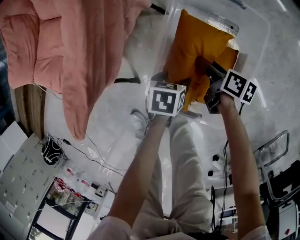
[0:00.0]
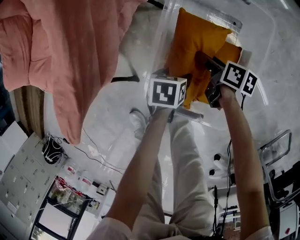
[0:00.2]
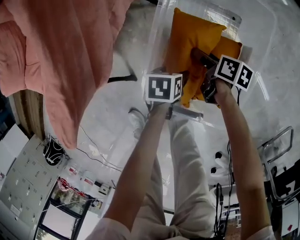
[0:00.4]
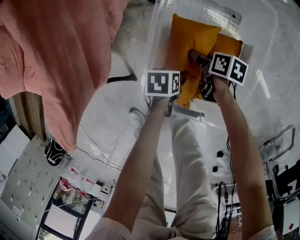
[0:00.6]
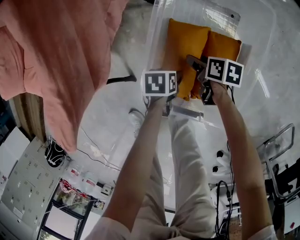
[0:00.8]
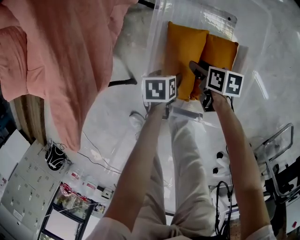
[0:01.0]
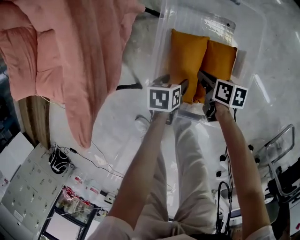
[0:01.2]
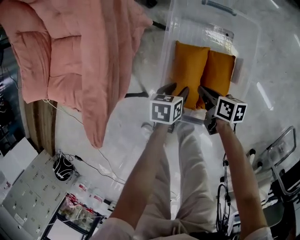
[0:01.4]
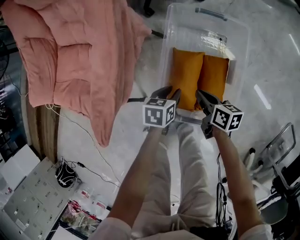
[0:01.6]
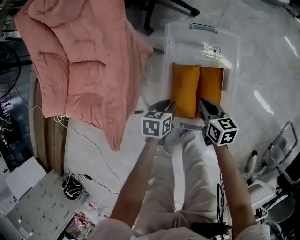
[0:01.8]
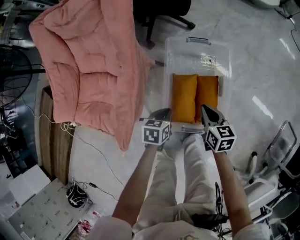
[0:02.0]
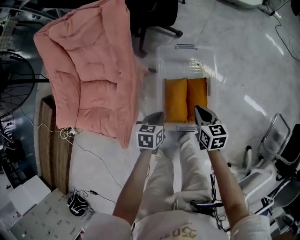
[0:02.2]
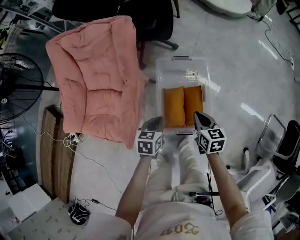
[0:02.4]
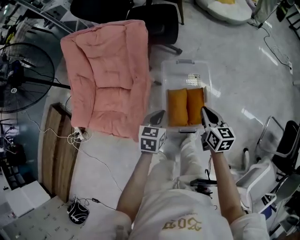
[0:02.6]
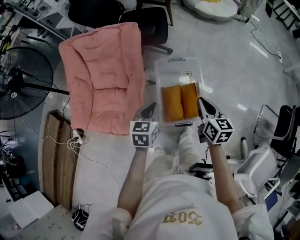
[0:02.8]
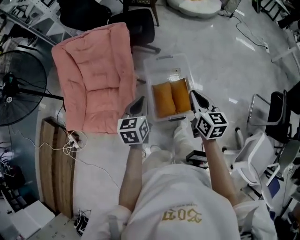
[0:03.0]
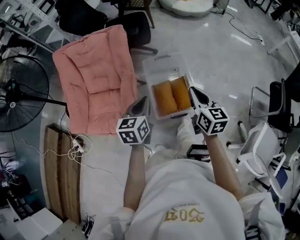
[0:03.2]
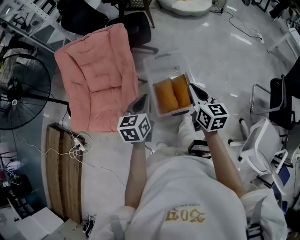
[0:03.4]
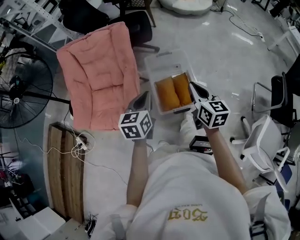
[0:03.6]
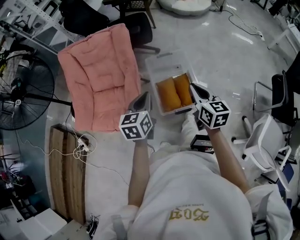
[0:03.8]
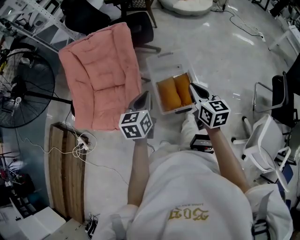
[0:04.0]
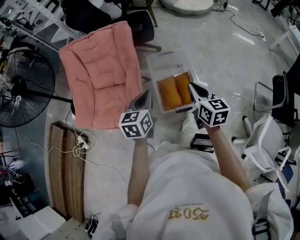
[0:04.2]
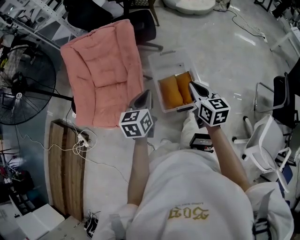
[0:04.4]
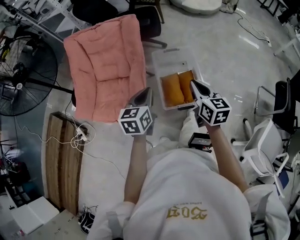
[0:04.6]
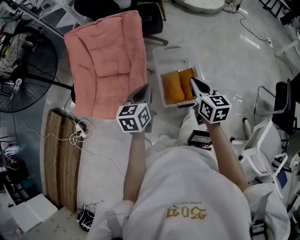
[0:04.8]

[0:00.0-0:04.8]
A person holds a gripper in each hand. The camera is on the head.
0.0 to 1.6 s: The grippers both shift upward by some 5 cm. The left gripper closes. The right gripper closes its fingers.
1.6 to 3.2 s: Both grippers move upward, approximately 50 cm. The left gripper turns by about 40 degrees; the right gripper swivels about 50 degrees.
3.2 to 4.8 s: The right gripper is displaced to the left by approximately 5 cm; the left gripper shifts by approximately 5 cm.

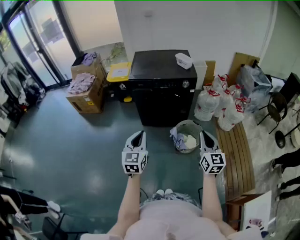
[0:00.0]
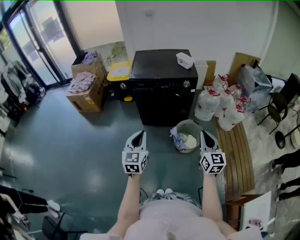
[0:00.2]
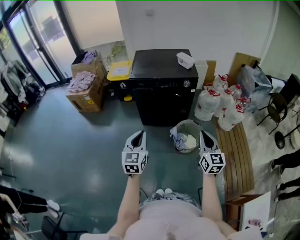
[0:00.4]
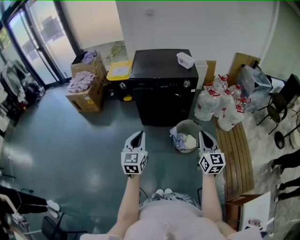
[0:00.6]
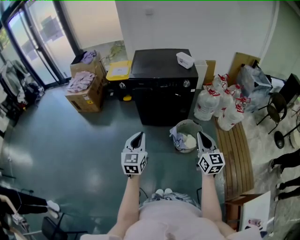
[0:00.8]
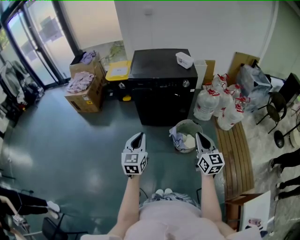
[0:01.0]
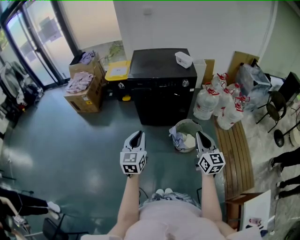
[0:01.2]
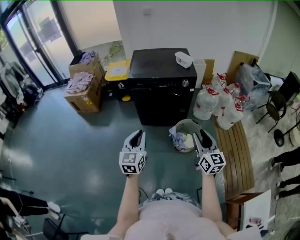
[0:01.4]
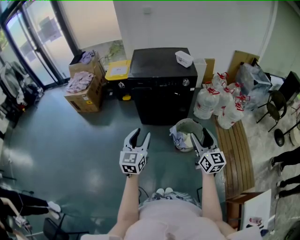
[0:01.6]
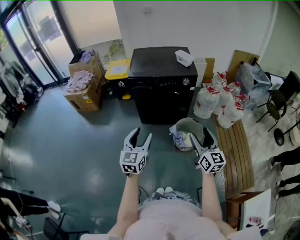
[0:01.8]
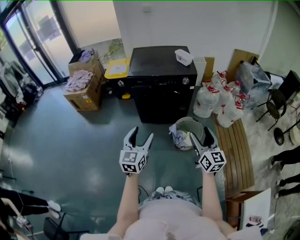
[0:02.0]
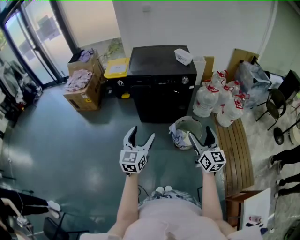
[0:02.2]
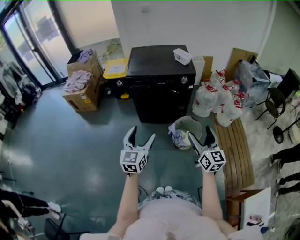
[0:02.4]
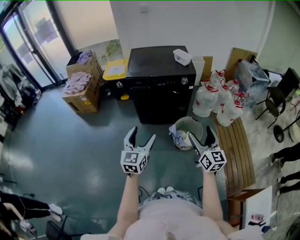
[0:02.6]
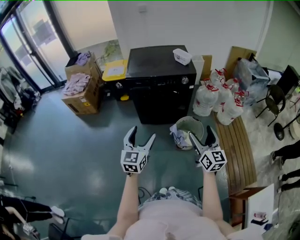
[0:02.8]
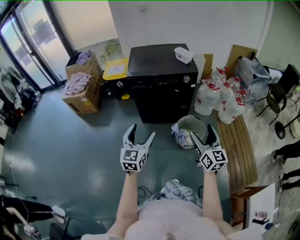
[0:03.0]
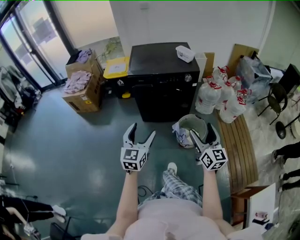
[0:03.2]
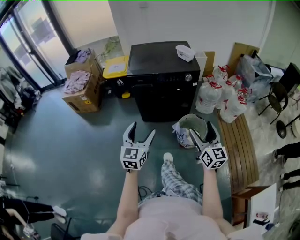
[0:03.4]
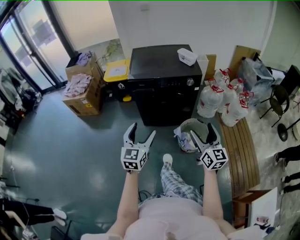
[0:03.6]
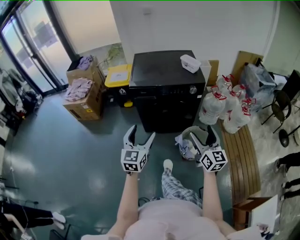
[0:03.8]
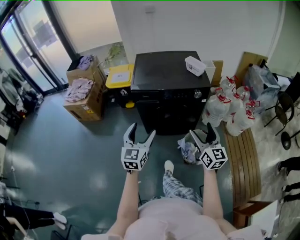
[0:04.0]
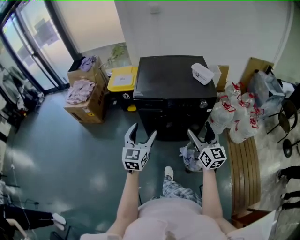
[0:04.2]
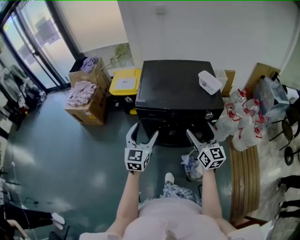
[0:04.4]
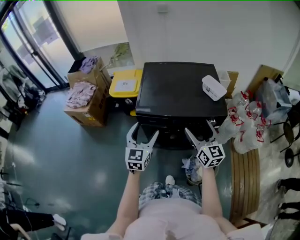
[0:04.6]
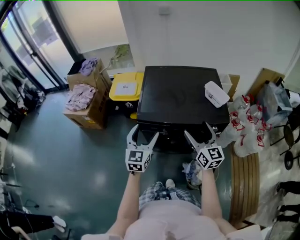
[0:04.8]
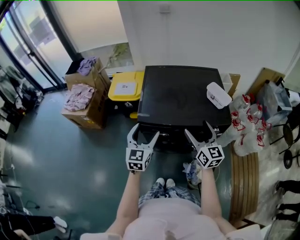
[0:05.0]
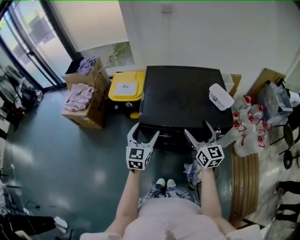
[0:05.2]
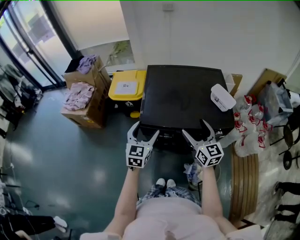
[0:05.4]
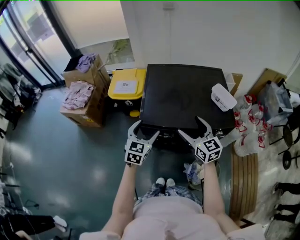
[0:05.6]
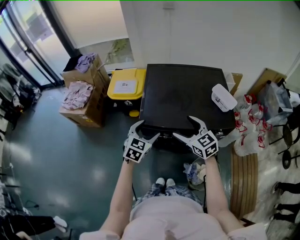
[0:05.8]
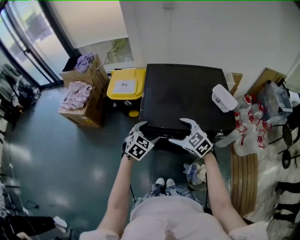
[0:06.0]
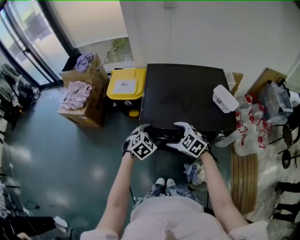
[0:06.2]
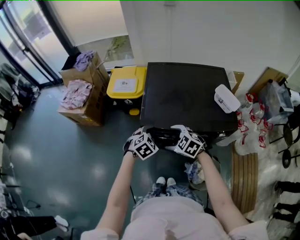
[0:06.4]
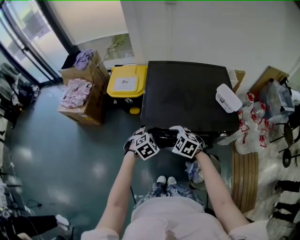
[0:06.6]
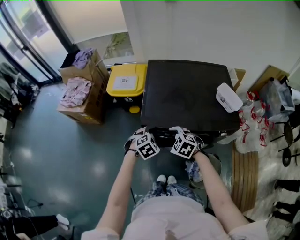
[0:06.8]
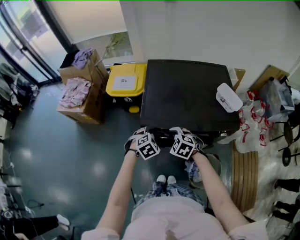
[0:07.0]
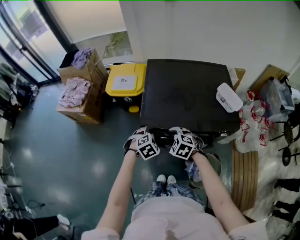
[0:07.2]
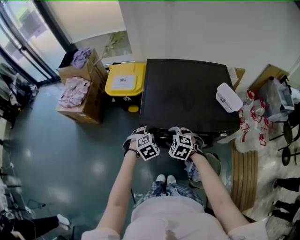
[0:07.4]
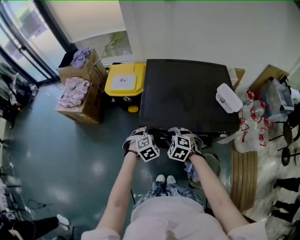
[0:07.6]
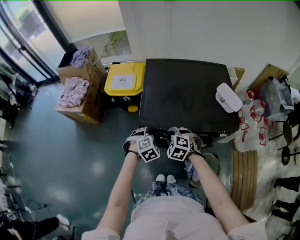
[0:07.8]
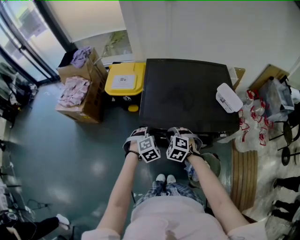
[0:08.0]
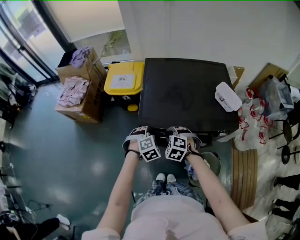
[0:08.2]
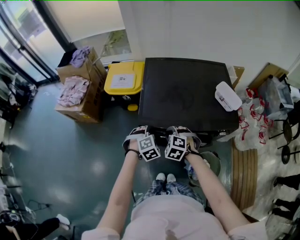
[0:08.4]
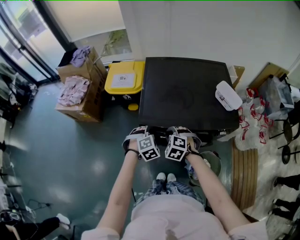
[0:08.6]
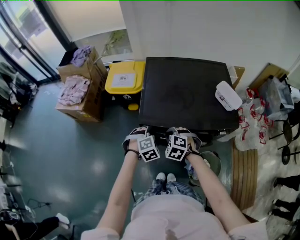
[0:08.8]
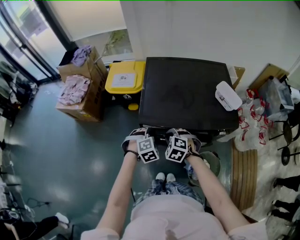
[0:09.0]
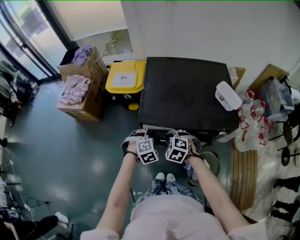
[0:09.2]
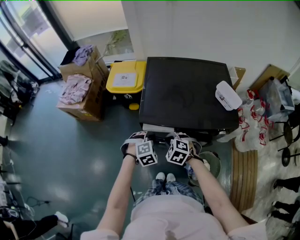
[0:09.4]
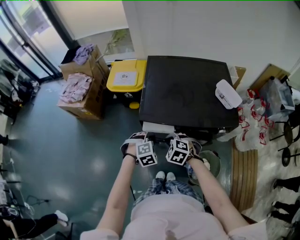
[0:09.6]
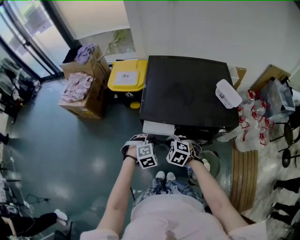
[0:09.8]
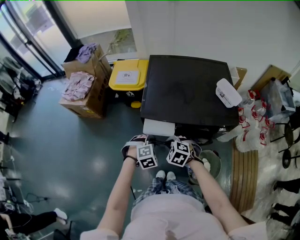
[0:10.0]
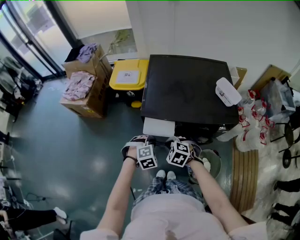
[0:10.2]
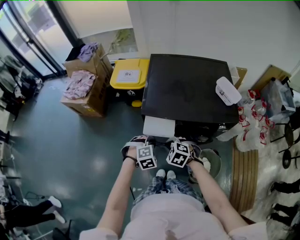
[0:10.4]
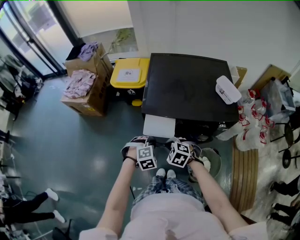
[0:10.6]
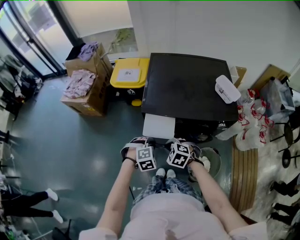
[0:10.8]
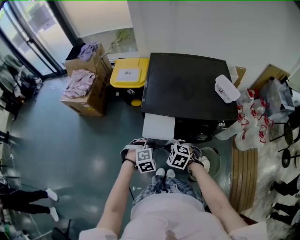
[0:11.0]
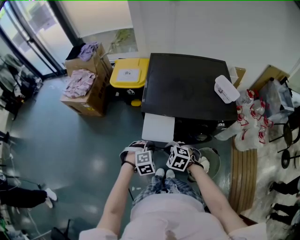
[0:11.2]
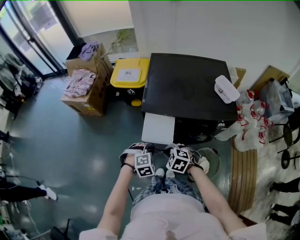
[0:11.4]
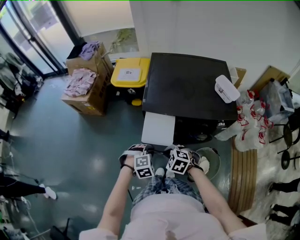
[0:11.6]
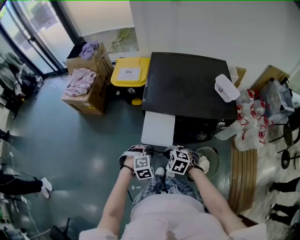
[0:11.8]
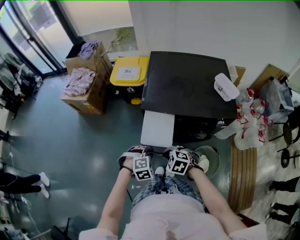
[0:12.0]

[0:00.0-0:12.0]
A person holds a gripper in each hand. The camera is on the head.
0.0 to 1.6 s: The right gripper opens its fingers. The left gripper opens.
1.6 to 3.0 s: The right gripper opens its fingers, while the left gripper opens up.
3.0 to 4.4 s: Both grippers travel together forward, approximately 35 cm.
4.4 to 6.0 s: The left gripper shifts some 20 cm forward and downward, and tips its fingers downward by roughly 30 degrees. Meanwhile the right gripper heads forward, to the left and downward, covering some 25 cm, and tilts its fingers about 30 degrees downward.
6.0 to 7.6 s: Both grippers move downward, approximately 10 cm. The right gripper rotates roughly 30 degrees, and closes. The left gripper turns by roughly 30 degrees, and closes up.
7.6 to 9.0 s: The left gripper closes up.
9.0 to 10.4 s: The grippers both shift backward by some 10 cm.
10.4 to 12.0 s: The two grippers go roughly 10 cm backward.

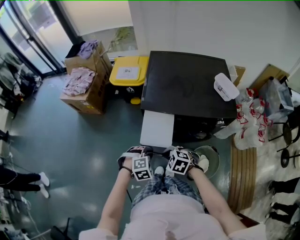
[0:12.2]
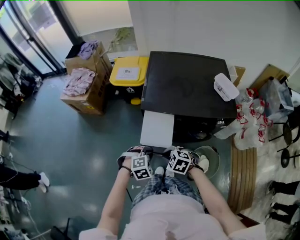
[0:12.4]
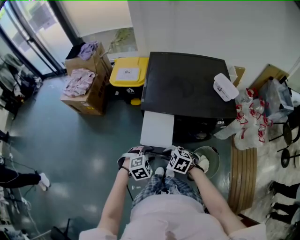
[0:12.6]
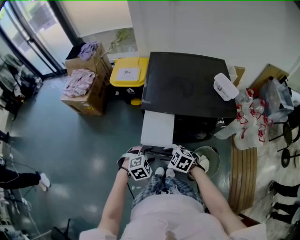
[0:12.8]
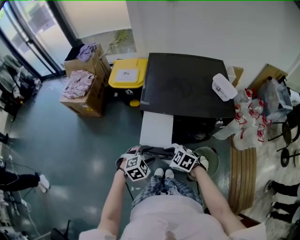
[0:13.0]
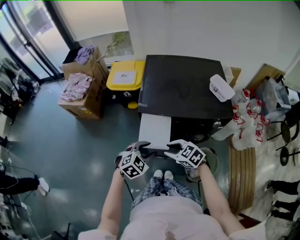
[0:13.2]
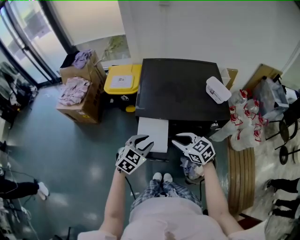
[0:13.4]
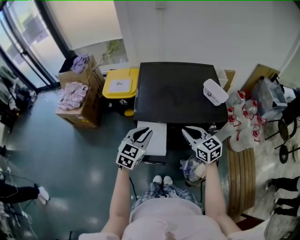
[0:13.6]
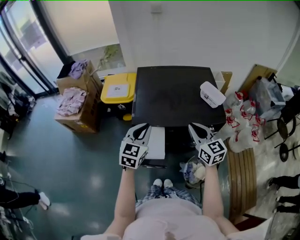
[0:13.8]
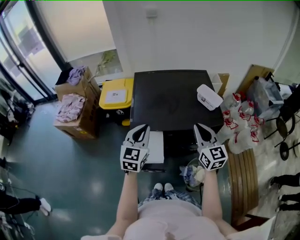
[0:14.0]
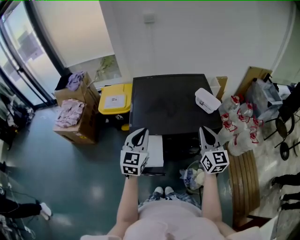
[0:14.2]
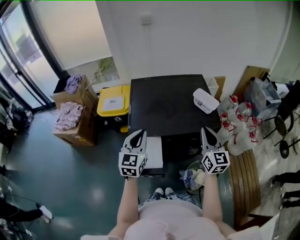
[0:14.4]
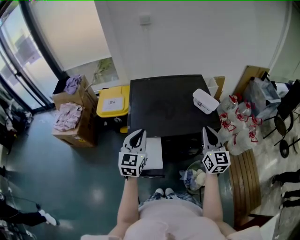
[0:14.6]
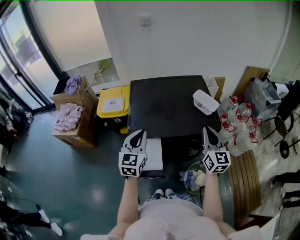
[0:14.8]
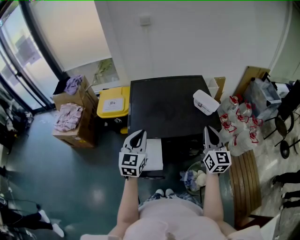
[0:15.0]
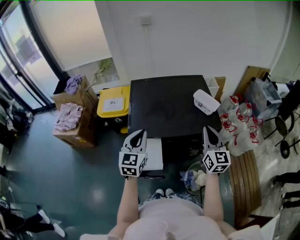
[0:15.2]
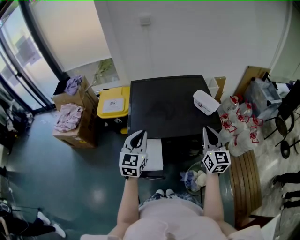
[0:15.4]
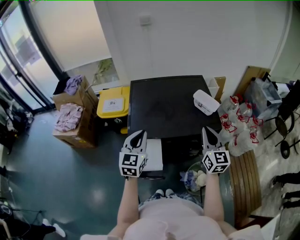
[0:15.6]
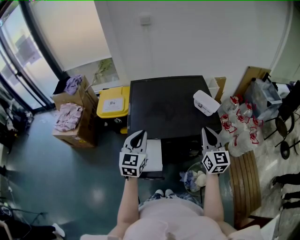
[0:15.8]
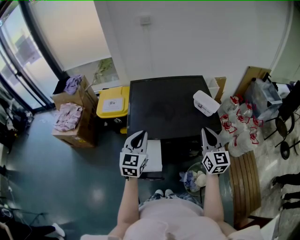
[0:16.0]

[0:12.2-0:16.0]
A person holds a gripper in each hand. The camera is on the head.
12.2 to 13.4 s: The right gripper shifts roughly 15 cm upward, to the right and forward, and rotates some 40 degrees, while the left gripper shifts roughly 15 cm upward and forward, and tips its fingers upward by about 30 degrees.
13.4 to 14.8 s: The left gripper heads upward and forward, covering roughly 15 cm, and turns by about 30 degrees. The right gripper heads to the right, upward and forward, covering approximately 25 cm, and angles its fingers upward, by approximately 30 degrees.
14.8 to 16.0 s: There are only small adjustments of the grippers.

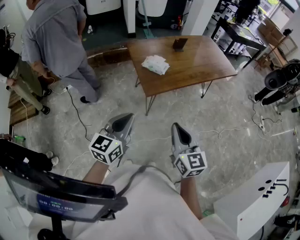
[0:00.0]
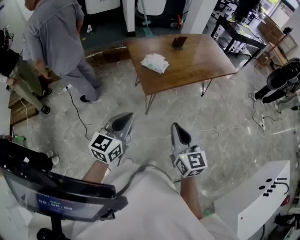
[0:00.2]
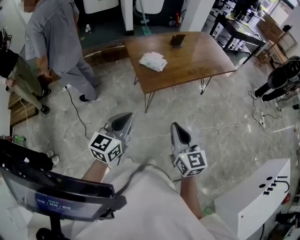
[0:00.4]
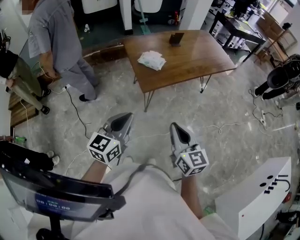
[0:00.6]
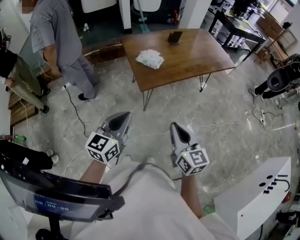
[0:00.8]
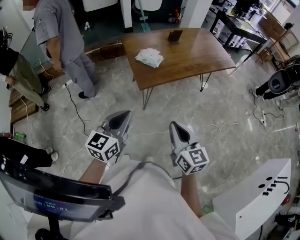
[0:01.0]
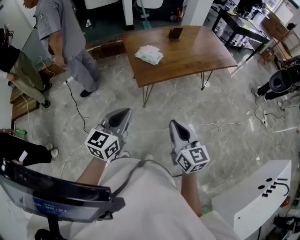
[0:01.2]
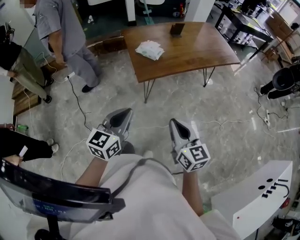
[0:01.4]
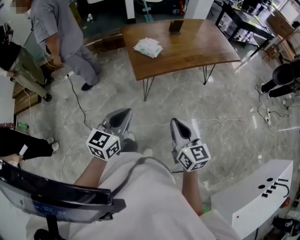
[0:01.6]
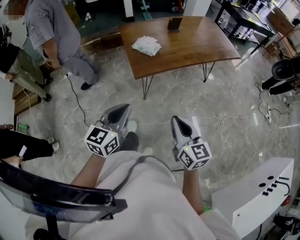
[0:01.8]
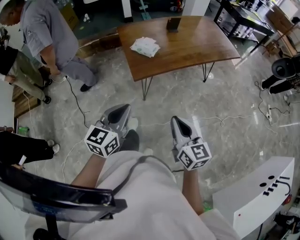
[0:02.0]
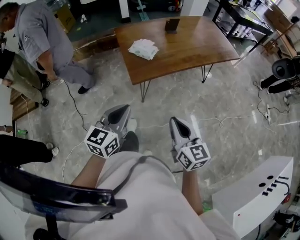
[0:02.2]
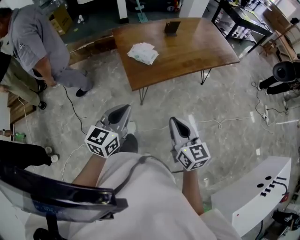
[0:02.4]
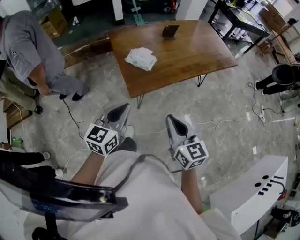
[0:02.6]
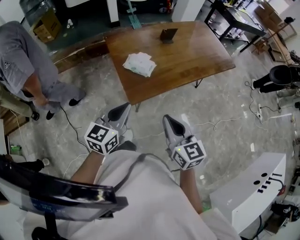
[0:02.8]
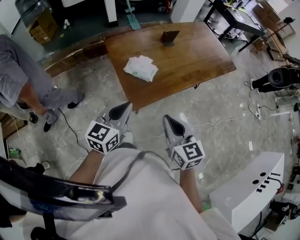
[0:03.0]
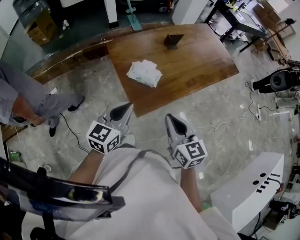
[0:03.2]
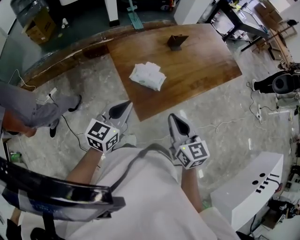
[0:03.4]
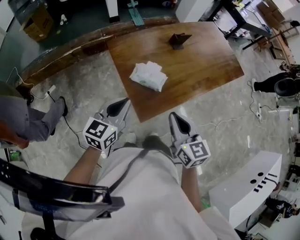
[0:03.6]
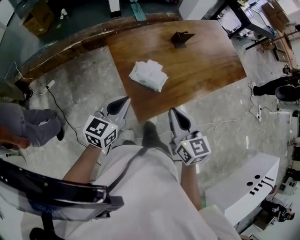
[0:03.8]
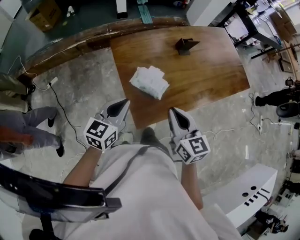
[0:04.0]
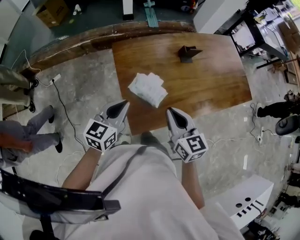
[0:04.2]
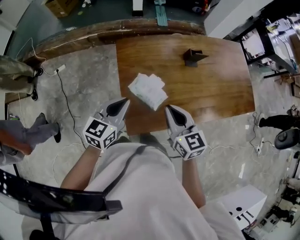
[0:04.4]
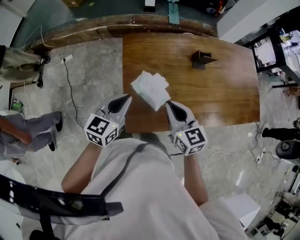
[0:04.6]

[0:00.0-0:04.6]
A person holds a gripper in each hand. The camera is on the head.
0.0 to 1.6 s: The left gripper moves to the right, about 10 cm. Meanwhile the right gripper travels to the right and downward by approximately 10 cm.
1.6 to 3.0 s: The grippers both shift forward by some 25 cm.
3.0 to 4.6 s: Both grippers move forward, approximately 25 cm. The left gripper changes its angle by approximately 20 degrees; the right gripper rotates roughly 20 degrees.
